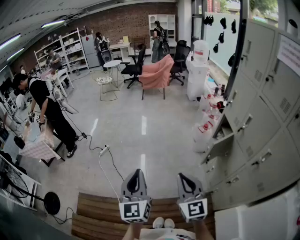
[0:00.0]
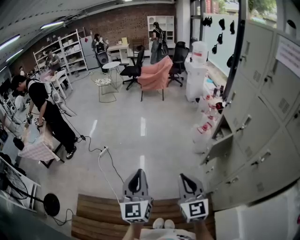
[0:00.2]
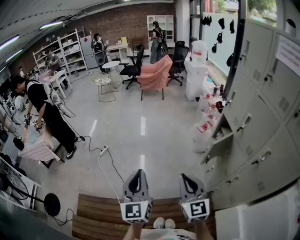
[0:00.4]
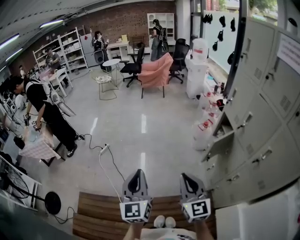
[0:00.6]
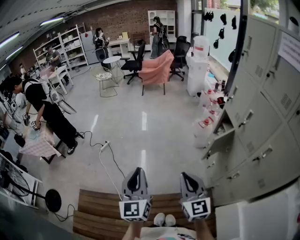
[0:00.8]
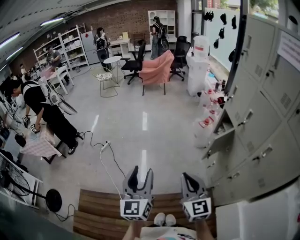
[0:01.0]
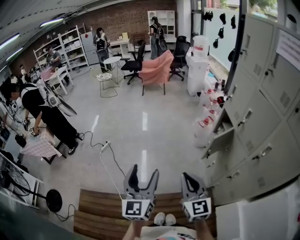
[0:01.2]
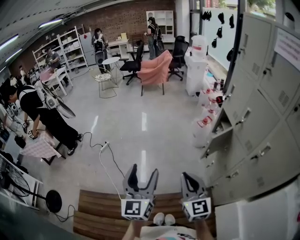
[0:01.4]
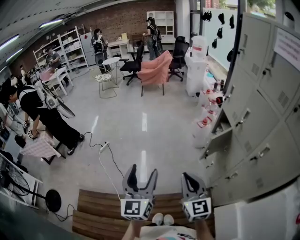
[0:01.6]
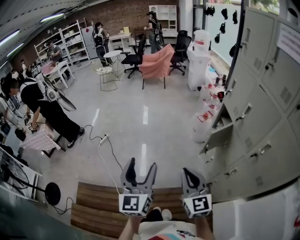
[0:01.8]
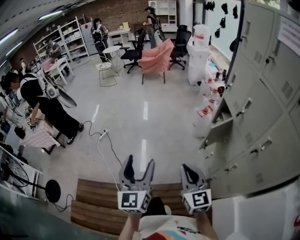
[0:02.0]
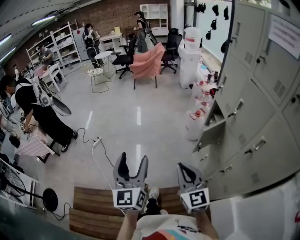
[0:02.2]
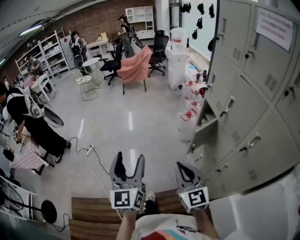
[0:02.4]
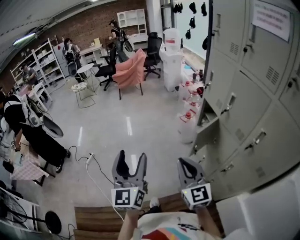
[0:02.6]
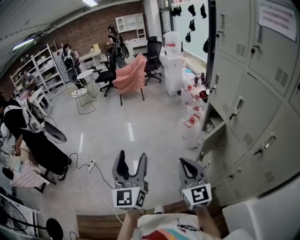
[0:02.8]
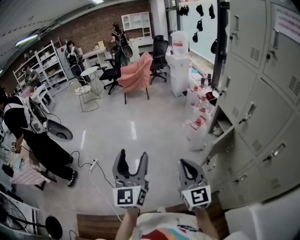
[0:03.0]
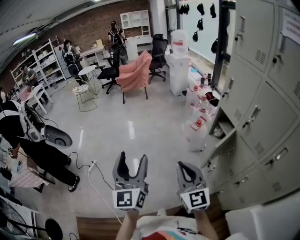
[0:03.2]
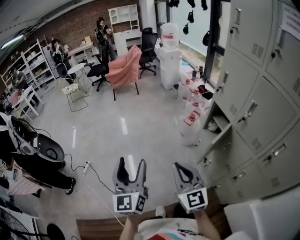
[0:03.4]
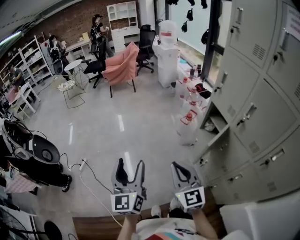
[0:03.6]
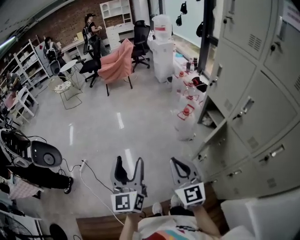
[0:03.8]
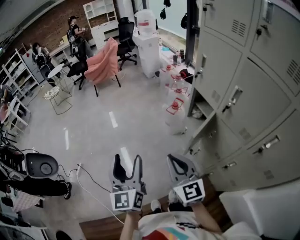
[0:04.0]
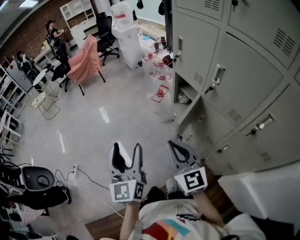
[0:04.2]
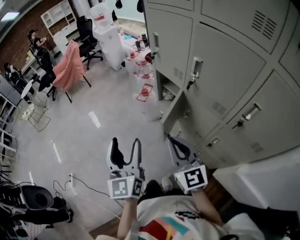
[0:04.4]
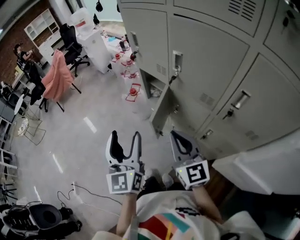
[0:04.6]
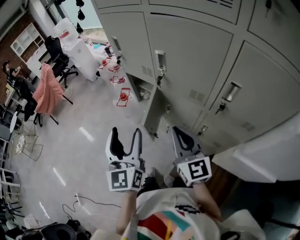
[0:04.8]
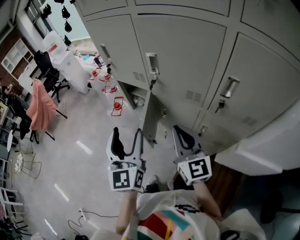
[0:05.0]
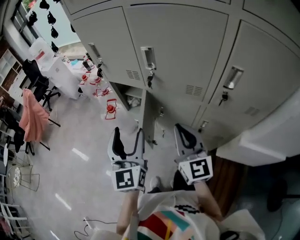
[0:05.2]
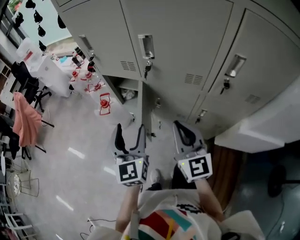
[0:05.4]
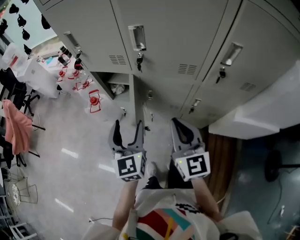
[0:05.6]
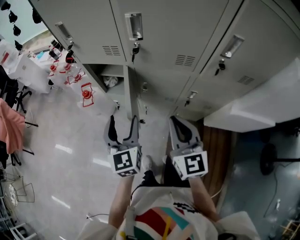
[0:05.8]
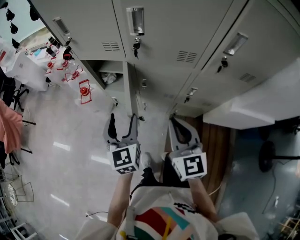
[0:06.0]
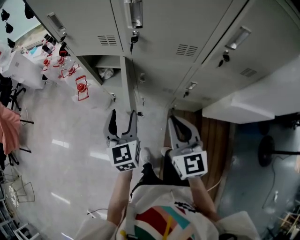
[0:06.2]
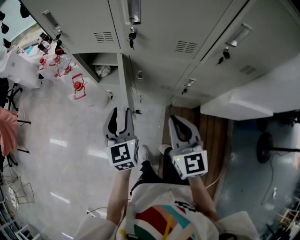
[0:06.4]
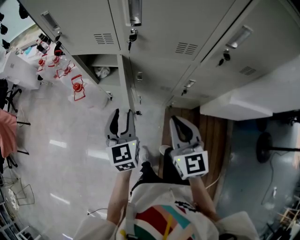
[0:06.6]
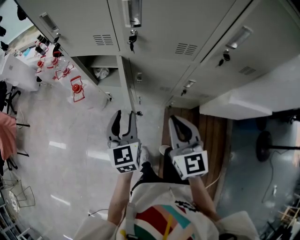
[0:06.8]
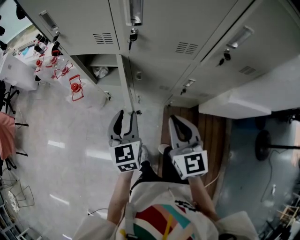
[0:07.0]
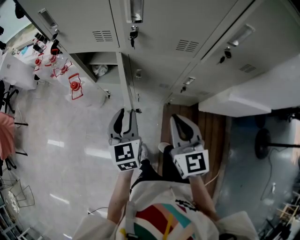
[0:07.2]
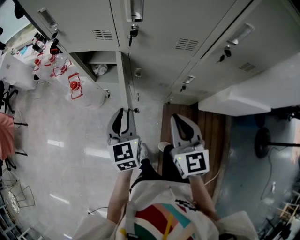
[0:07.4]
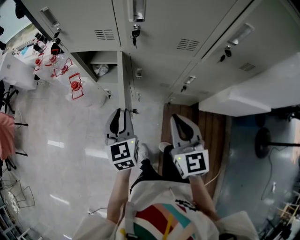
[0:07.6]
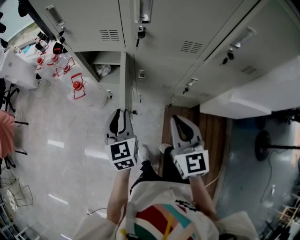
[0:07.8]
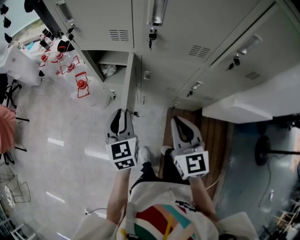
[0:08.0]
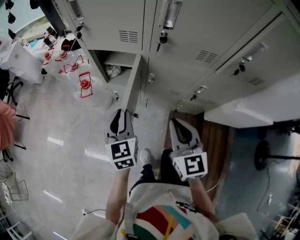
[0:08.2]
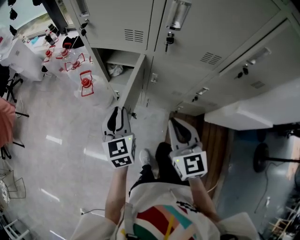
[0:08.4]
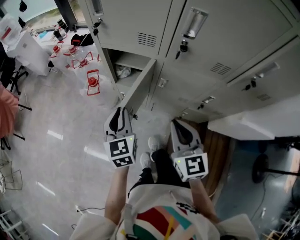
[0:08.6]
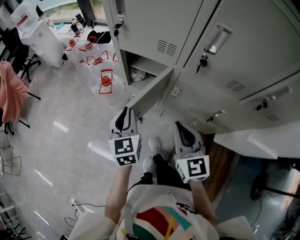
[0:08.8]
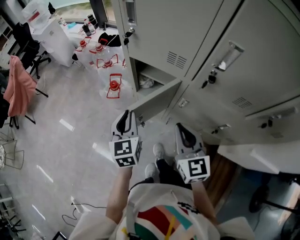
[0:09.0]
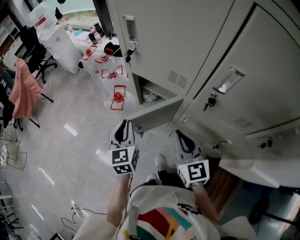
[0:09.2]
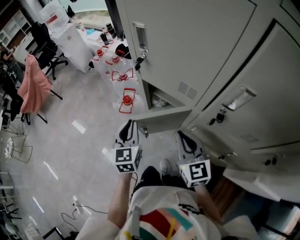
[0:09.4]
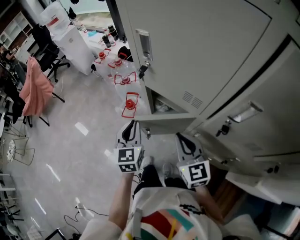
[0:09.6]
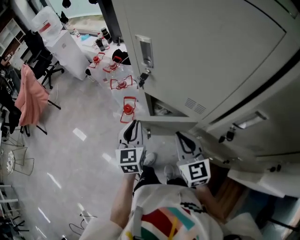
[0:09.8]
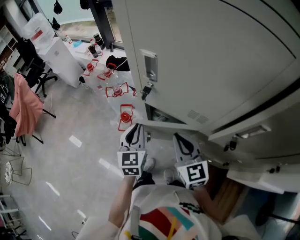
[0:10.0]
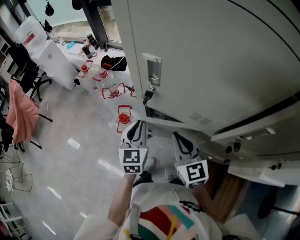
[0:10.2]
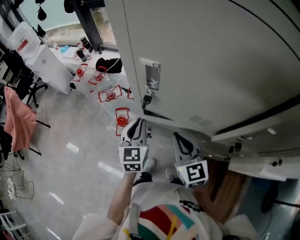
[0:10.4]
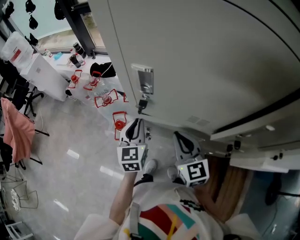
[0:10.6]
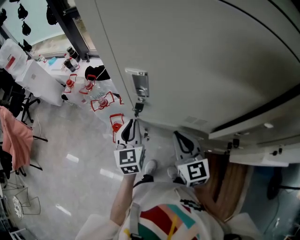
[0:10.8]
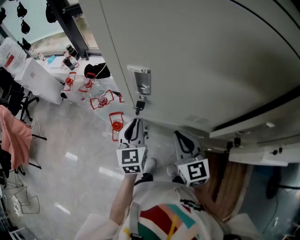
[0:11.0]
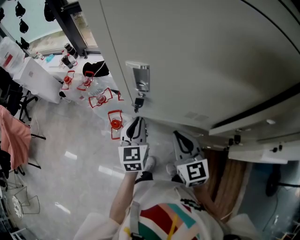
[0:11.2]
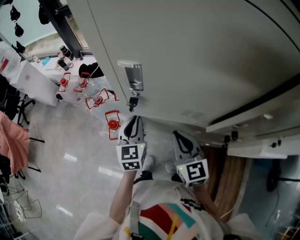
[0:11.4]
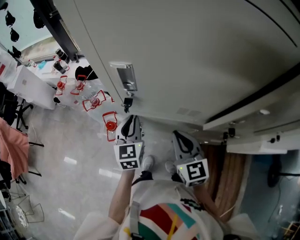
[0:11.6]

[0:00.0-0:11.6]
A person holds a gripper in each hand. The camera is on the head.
0:00.0 to 0:01.4: The left gripper opens.
0:01.4 to 0:02.8: The right gripper travels forward and to the right by roughly 15 cm; the left gripper is displaced forward by approximately 15 cm.
0:02.8 to 0:04.4: The right gripper shifts roughly 20 cm to the right and forward, and turns by roughly 20 degrees; the left gripper moves to the right, forward and downward, about 30 cm, and changes its angle by roughly 20 degrees.
0:04.4 to 0:05.8: The left gripper shifts by some 25 cm, and swivels about 40 degrees. The right gripper goes about 10 cm downward, and turns by approximately 50 degrees.
0:05.8 to 0:07.2: The left gripper goes roughly 5 cm downward, and closes its fingers.
0:07.2 to 0:08.8: The left gripper goes about 15 cm to the left. The right gripper shifts roughly 15 cm to the left and forward.
0:08.8 to 0:10.2: Both grippers travel together forward, approximately 25 cm.
0:10.2 to 0:11.6: The left gripper changes place by about 5 cm.

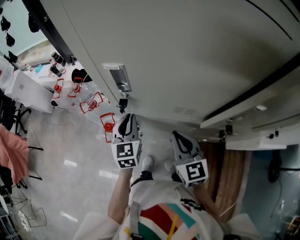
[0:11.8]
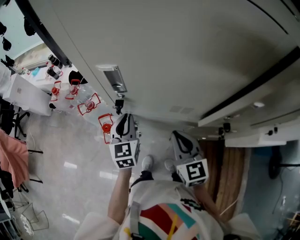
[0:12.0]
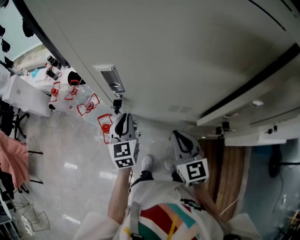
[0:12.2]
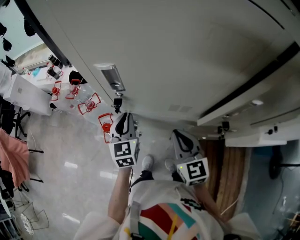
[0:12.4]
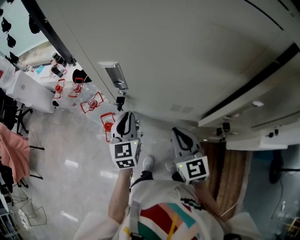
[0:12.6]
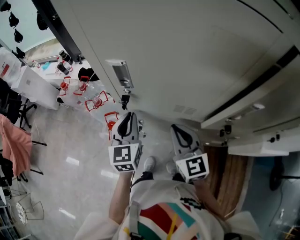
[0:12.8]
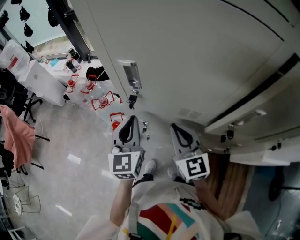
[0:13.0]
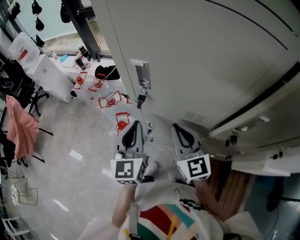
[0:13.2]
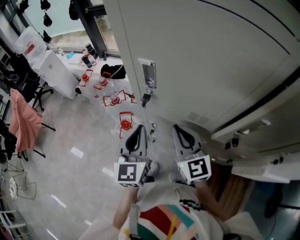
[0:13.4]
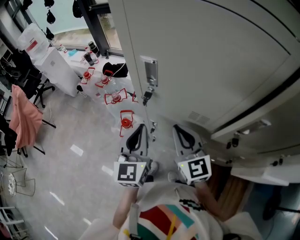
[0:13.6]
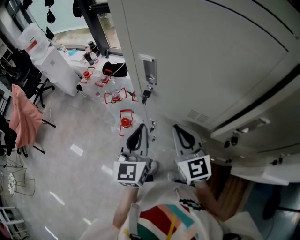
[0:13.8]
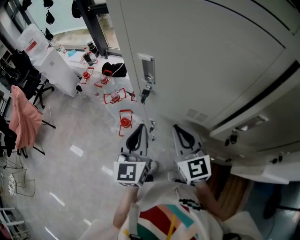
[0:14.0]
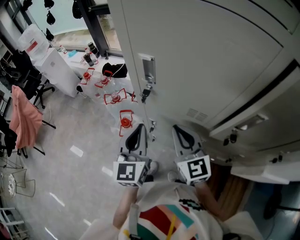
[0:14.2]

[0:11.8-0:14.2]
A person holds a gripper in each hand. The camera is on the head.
0:11.8 to 0:13.0: The left gripper moves upward, about 10 cm; the right gripper moves about 5 cm.
0:13.0 to 0:14.2: The left gripper goes some 5 cm backward.

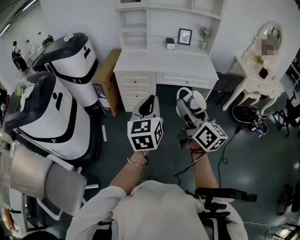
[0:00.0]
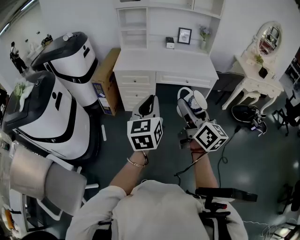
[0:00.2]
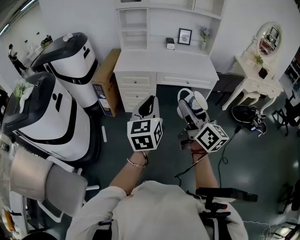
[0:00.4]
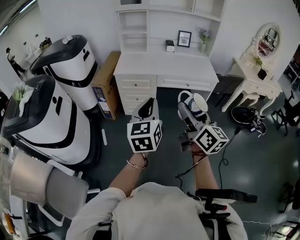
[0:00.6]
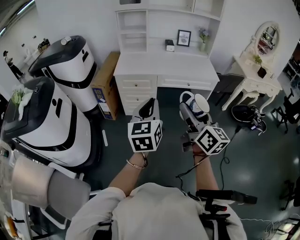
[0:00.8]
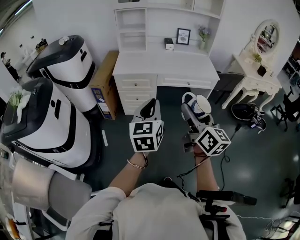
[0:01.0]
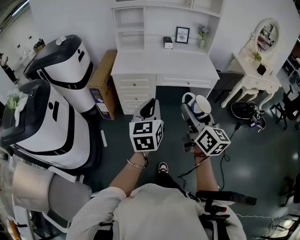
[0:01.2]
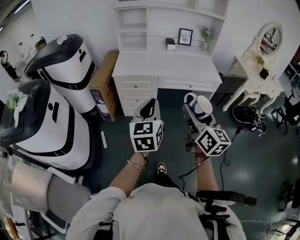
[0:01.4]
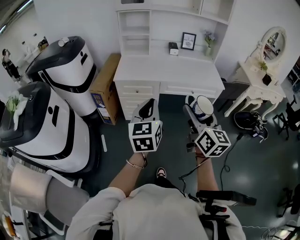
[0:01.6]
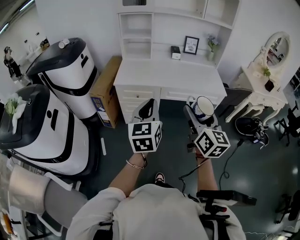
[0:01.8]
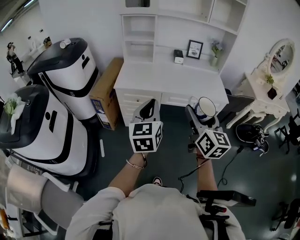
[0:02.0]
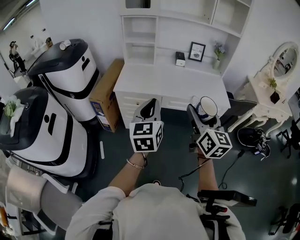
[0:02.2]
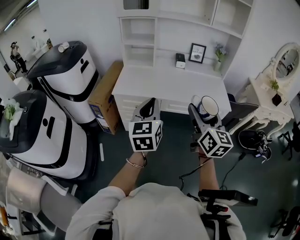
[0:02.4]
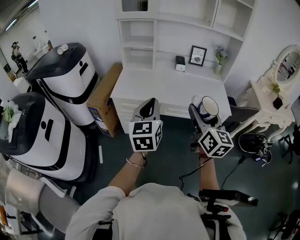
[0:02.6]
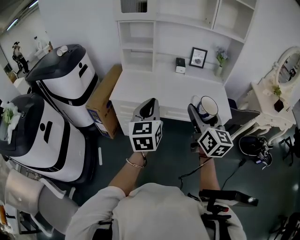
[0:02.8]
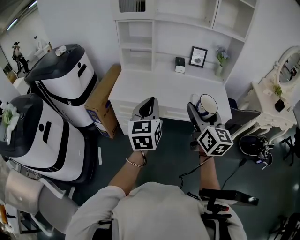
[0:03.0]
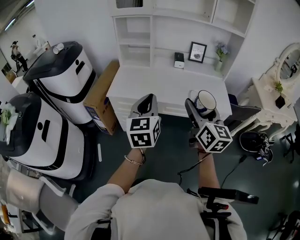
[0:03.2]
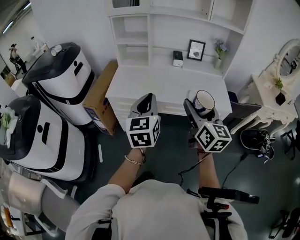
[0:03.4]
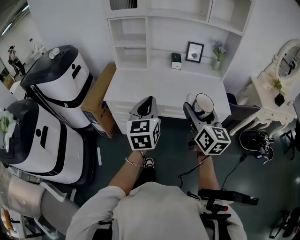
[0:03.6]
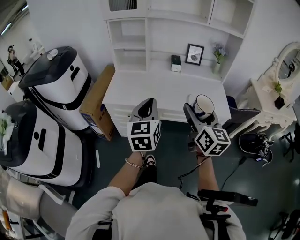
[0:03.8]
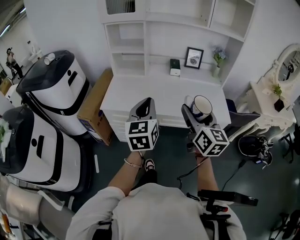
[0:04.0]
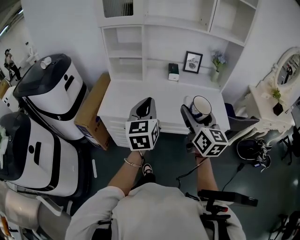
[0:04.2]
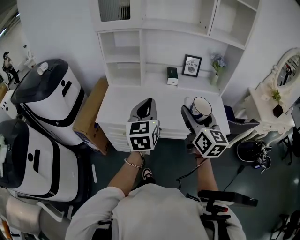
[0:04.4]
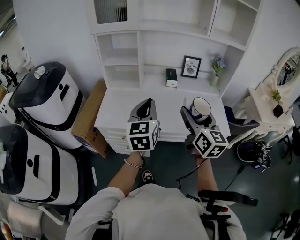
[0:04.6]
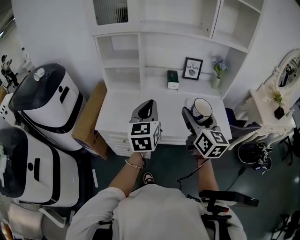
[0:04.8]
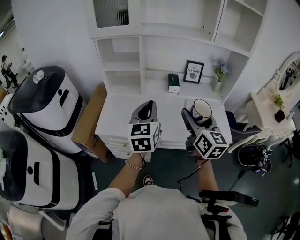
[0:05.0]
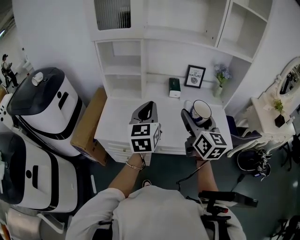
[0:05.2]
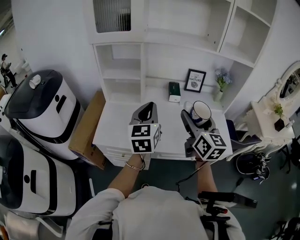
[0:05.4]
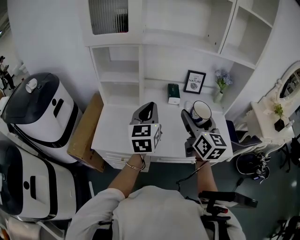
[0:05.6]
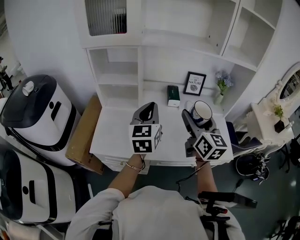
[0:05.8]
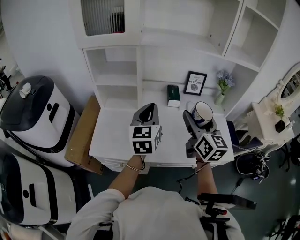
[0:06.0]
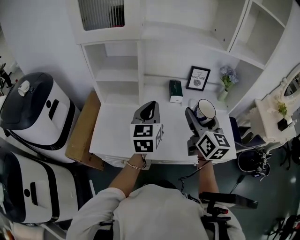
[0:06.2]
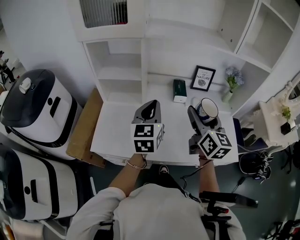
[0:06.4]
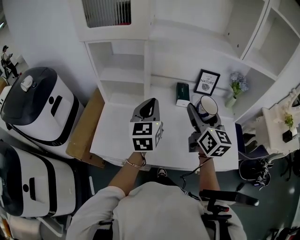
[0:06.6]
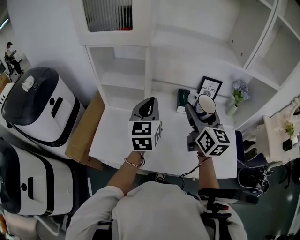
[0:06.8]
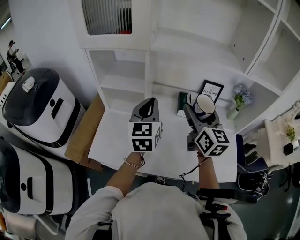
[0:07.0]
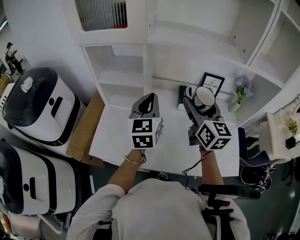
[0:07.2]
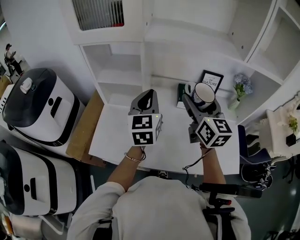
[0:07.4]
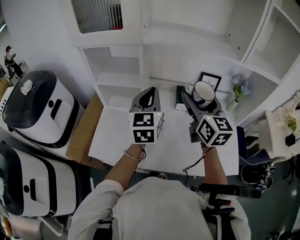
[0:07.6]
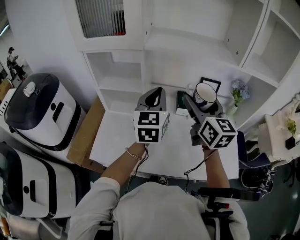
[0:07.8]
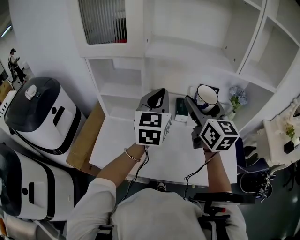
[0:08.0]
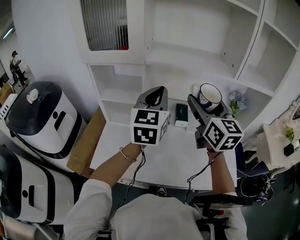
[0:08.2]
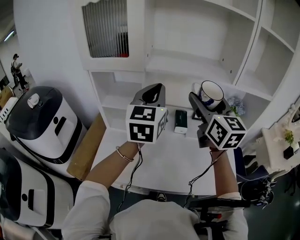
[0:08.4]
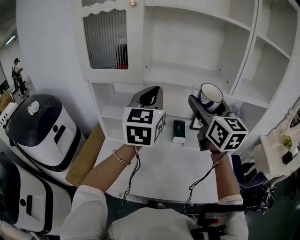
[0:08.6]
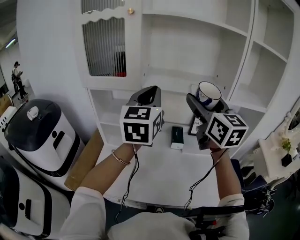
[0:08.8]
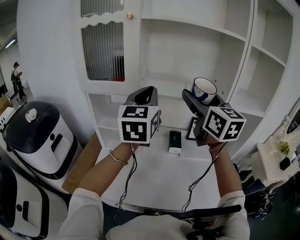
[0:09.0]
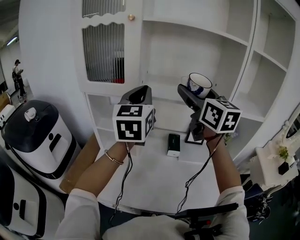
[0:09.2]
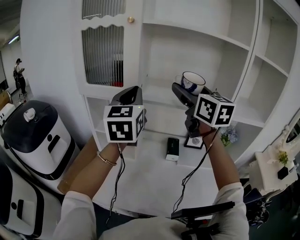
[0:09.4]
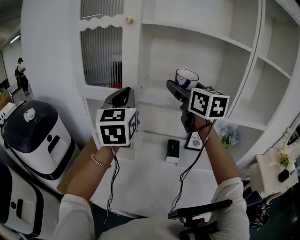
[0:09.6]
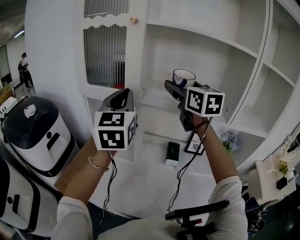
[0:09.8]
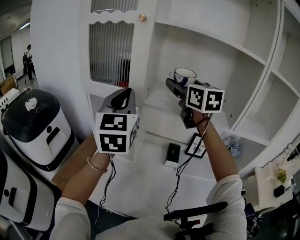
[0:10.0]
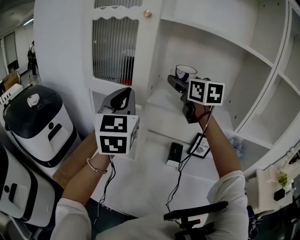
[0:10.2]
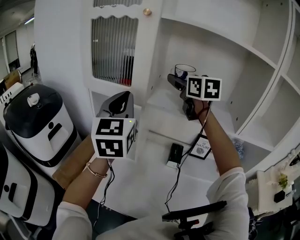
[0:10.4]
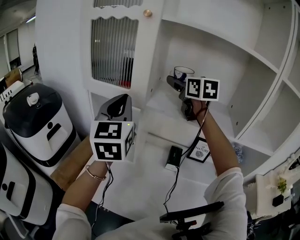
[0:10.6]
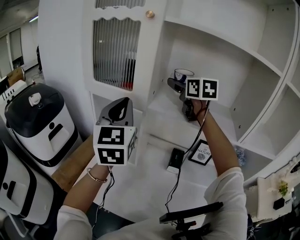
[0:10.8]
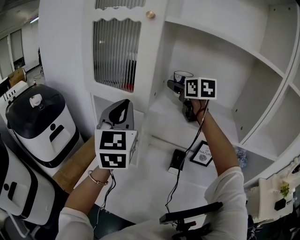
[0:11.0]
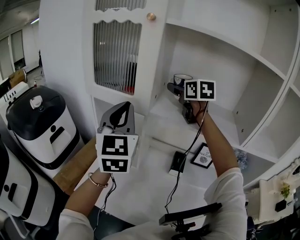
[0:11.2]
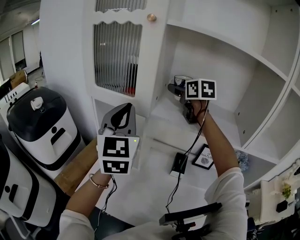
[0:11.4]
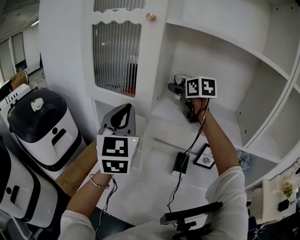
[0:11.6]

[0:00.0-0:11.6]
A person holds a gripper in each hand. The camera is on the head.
0:00.0 to 0:01.4: The grippers both shift forward by approximately 10 cm.
0:01.4 to 0:02.8: Both grippers move forward, about 25 cm.
0:02.8 to 0:04.4: Both grippers move forward, about 15 cm.
0:04.4 to 0:05.8: The two grippers go approximately 20 cm forward.
0:05.8 to 0:07.2: The two grippers go some 15 cm forward.
0:07.2 to 0:08.8: The grippers both shift upward by approximately 20 cm.
0:08.8 to 0:10.2: The left gripper moves to the left, about 10 cm, and rotates roughly 20 degrees. The right gripper is displaced forward by approximately 20 cm.
0:10.2 to 0:11.6: The right gripper moves forward and downward, approximately 10 cm.
